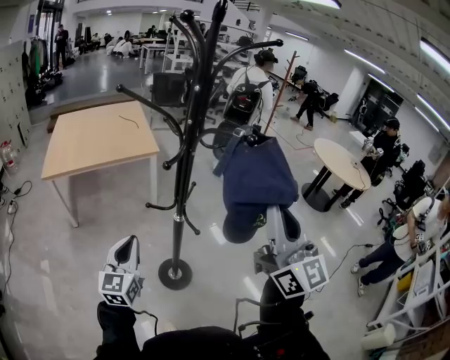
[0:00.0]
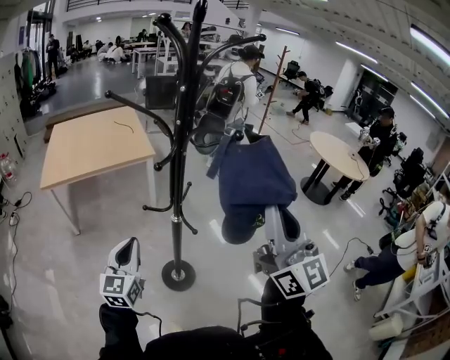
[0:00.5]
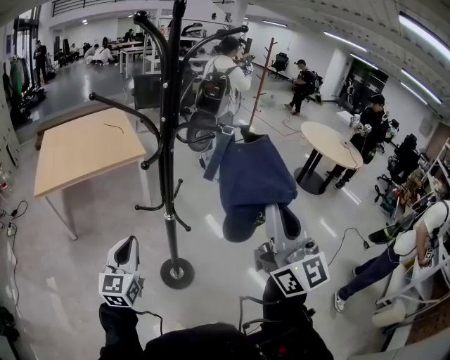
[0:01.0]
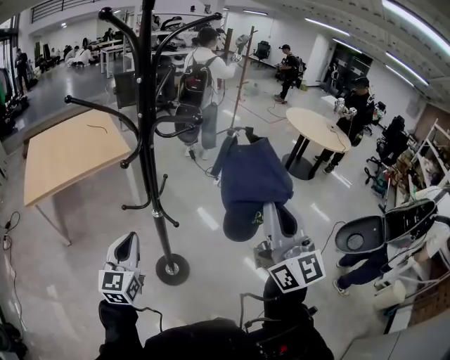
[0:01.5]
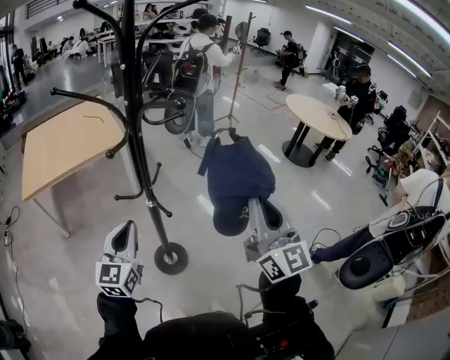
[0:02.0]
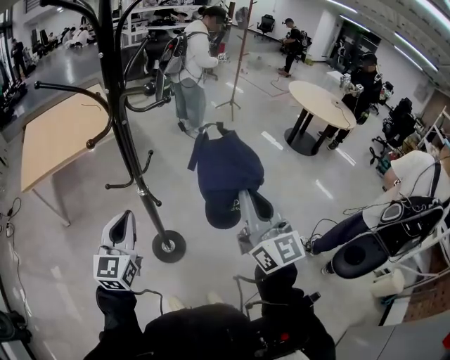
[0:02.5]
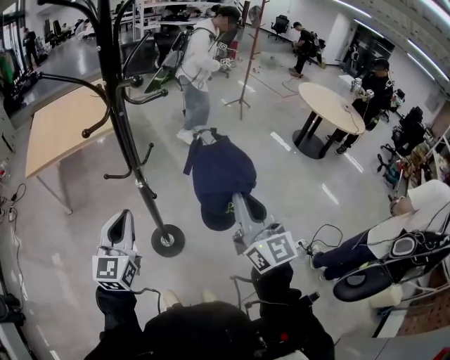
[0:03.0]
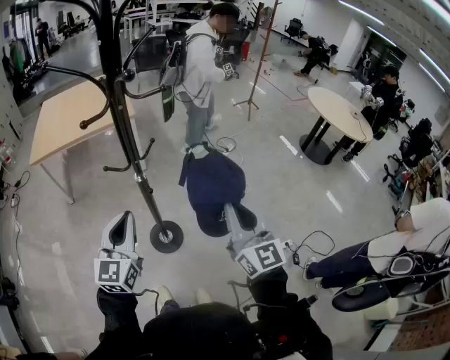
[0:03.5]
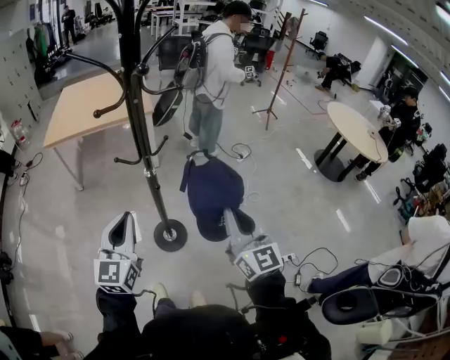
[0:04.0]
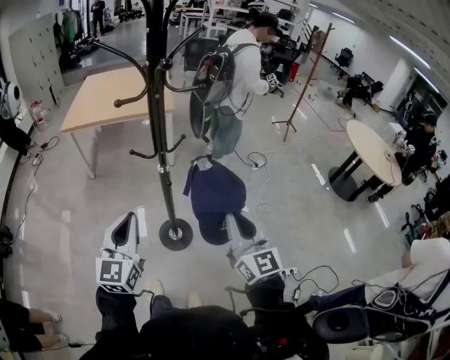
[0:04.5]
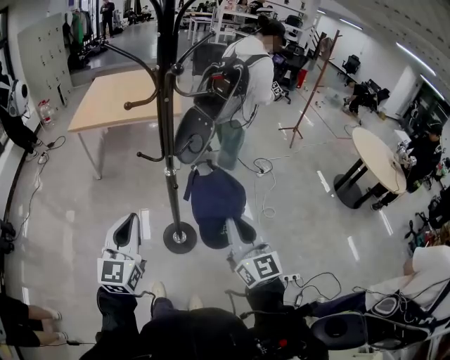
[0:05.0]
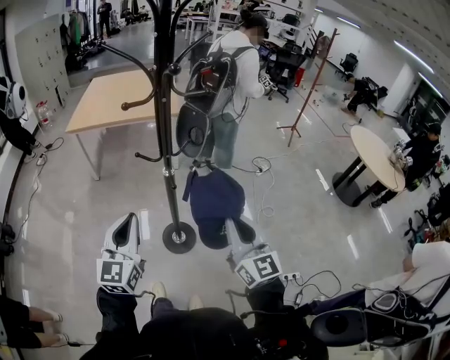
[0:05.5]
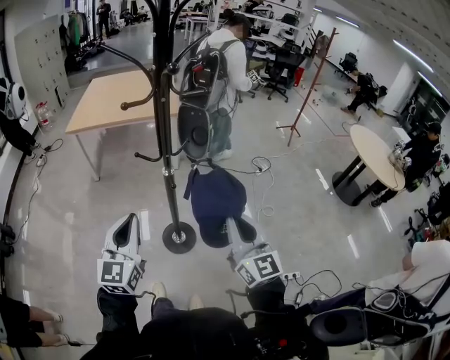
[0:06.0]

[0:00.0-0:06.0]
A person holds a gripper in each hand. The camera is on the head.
0:00.0 to 0:02.0: The right gripper goes some 10 cm downward and to the right, while the left gripper heads to the right, covering some 10 cm.
0:02.0 to 0:04.0: The right gripper travels downward by roughly 15 cm, and rotates some 20 degrees, while the left gripper moves backward and to the right, approximately 10 cm.
0:04.0 to 0:06.0: The grippers move only a little.

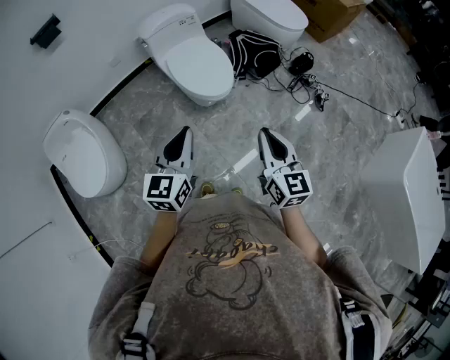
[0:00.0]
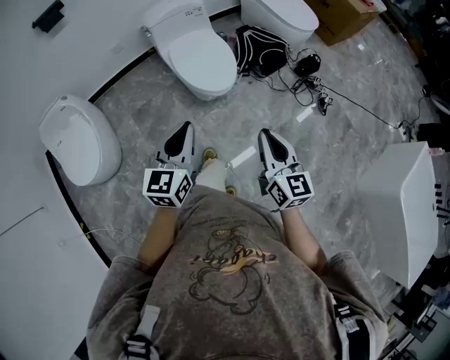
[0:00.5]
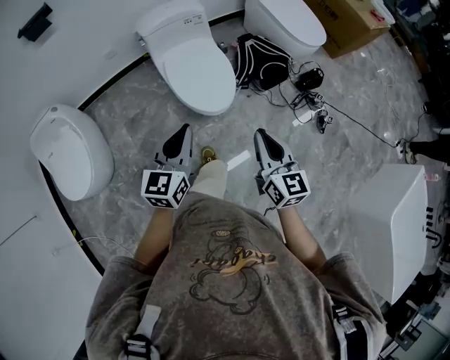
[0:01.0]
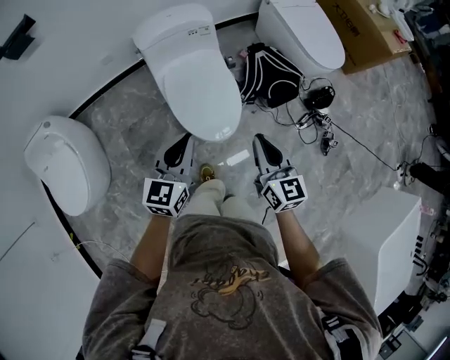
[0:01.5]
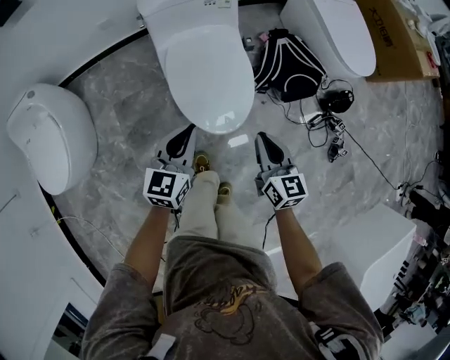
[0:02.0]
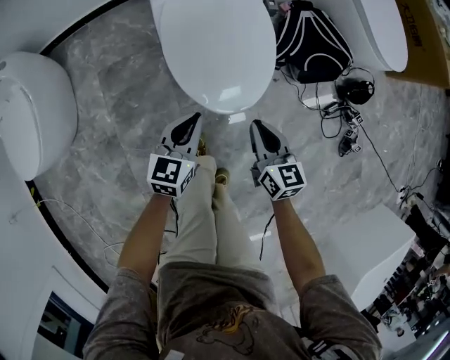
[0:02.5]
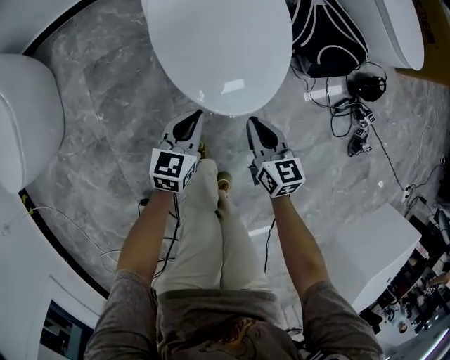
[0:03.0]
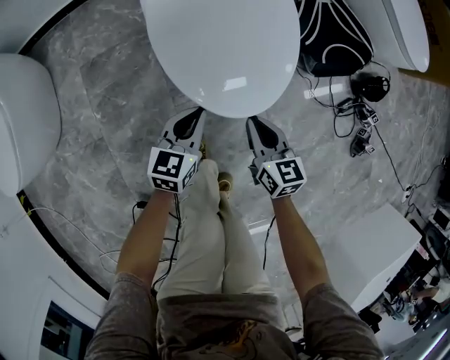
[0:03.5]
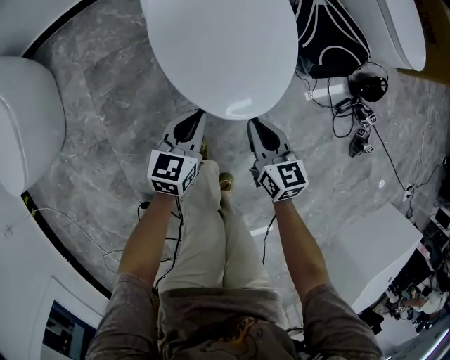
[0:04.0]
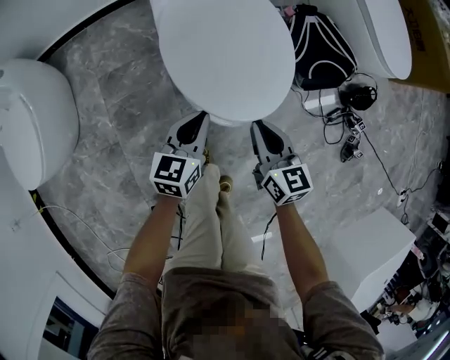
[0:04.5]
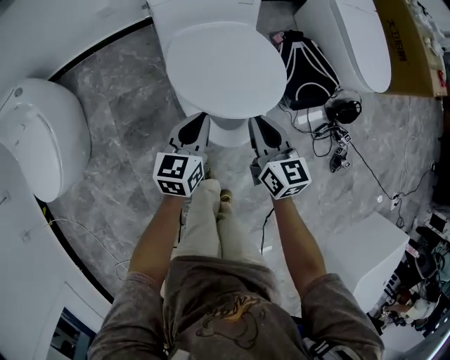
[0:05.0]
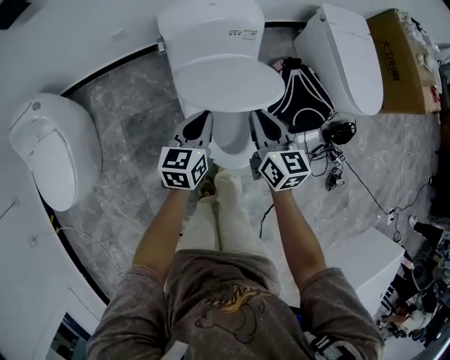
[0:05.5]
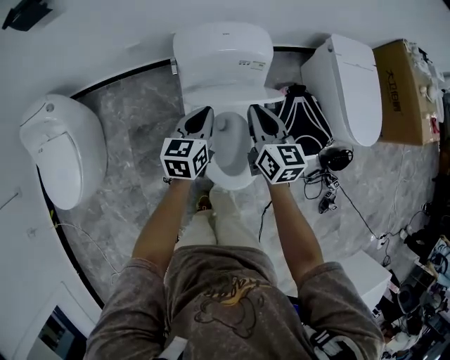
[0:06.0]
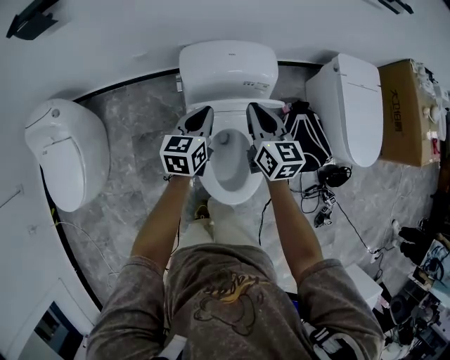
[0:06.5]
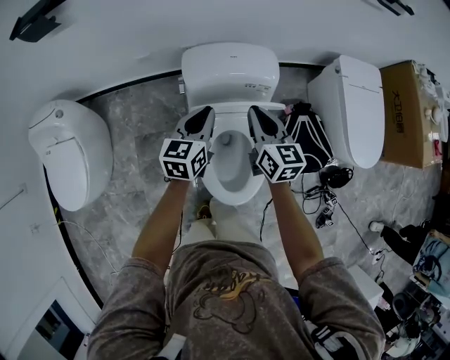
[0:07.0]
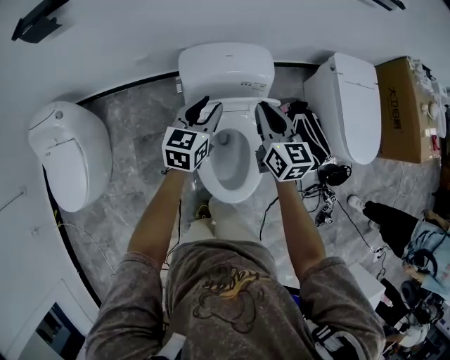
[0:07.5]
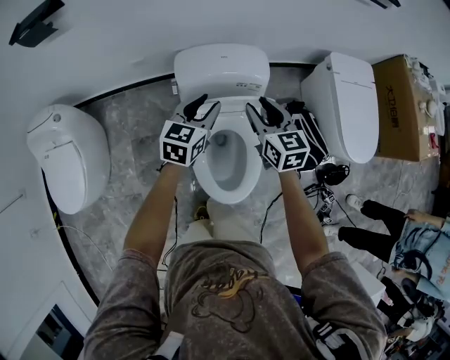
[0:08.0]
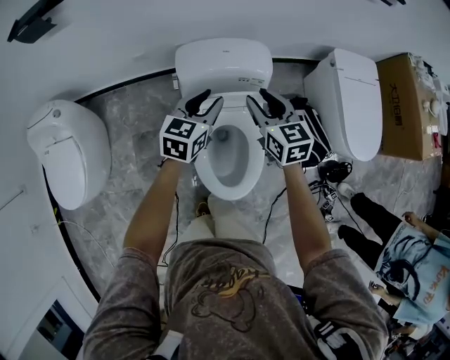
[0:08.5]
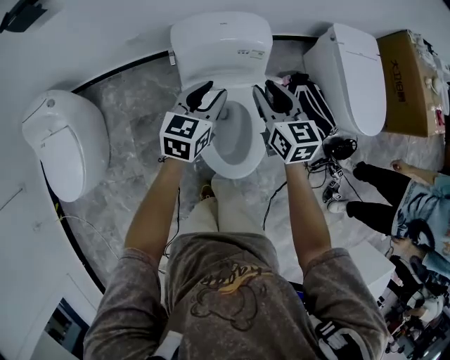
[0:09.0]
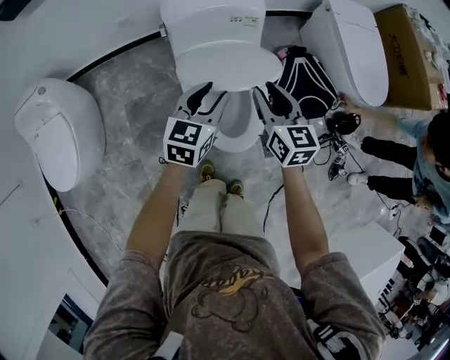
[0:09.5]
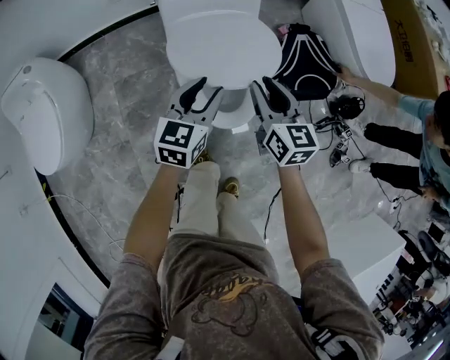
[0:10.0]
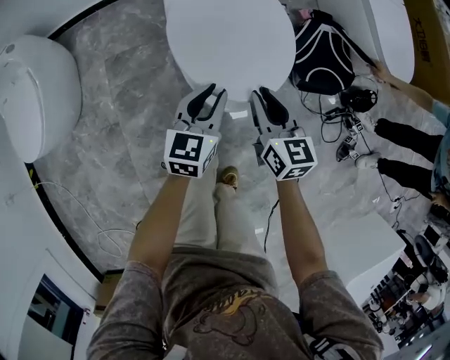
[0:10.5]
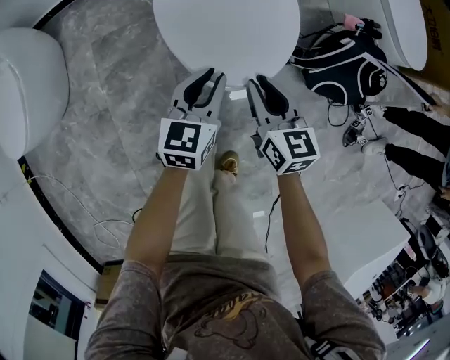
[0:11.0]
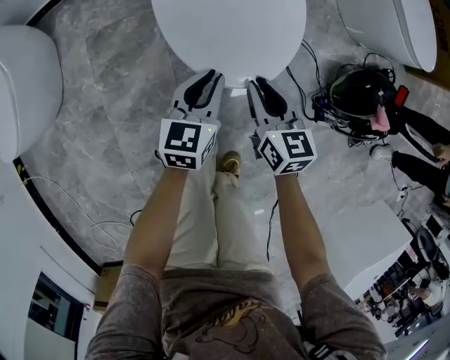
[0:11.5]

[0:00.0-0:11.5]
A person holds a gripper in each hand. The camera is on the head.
0:00.0 to 0:02.0: The two grippers go approximately 50 cm forward and downward. The right gripper changes its angle by approximately 20 degrees.
0:02.0 to 0:04.0: The grippers both shift downward by some 30 cm.
0:04.0 to 0:06.0: The two grippers go some 50 cm upward and forward.
0:06.0 to 0:07.5: The left gripper heads forward and upward, covering roughly 10 cm, and opens its fingers. The right gripper moves forward, roughly 5 cm.
0:07.5 to 0:09.5: The right gripper shifts about 20 cm backward and downward, and opens its fingers. Meanwhile the left gripper travels backward by some 15 cm.
0:09.5 to 0:11.5: The two grippers go roughly 35 cm downward and backward. The left gripper closes up.

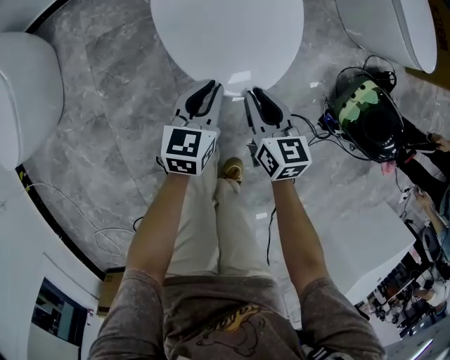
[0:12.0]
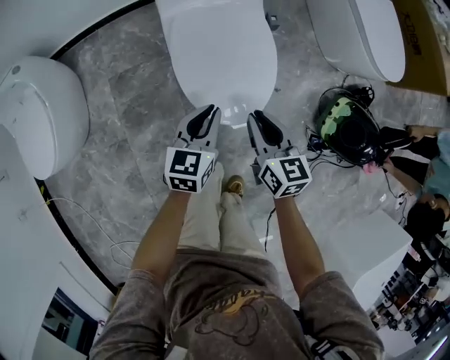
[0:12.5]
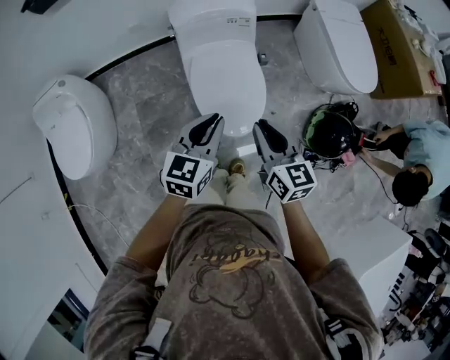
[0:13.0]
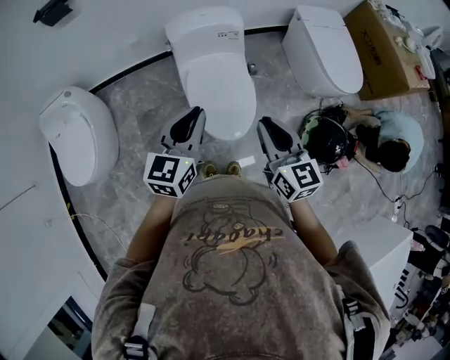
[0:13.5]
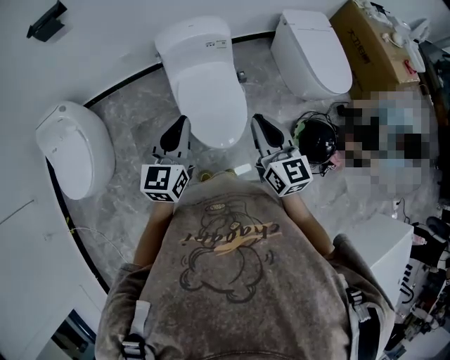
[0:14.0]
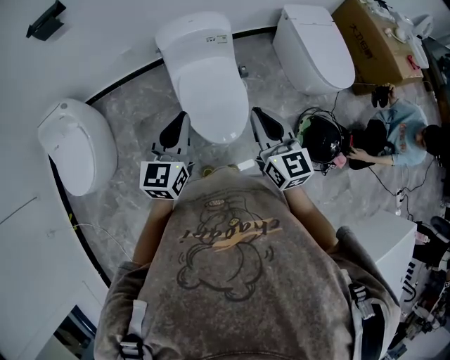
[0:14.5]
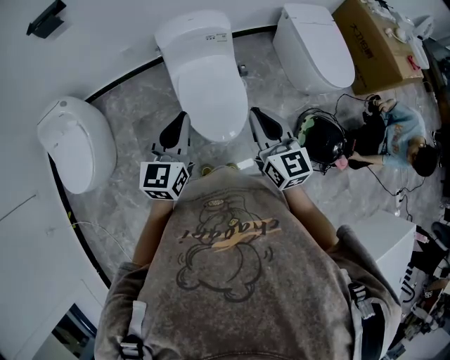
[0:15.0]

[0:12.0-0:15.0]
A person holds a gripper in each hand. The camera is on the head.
0:12.0 to 0:13.5: Both grippers move upward, about 50 cm. The left gripper rotates some 20 degrees. The right gripper rotates about 20 degrees.
0:13.5 to 0:15.0: There are only small adjustments of the grippers.

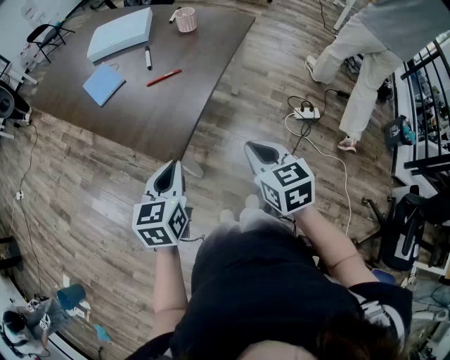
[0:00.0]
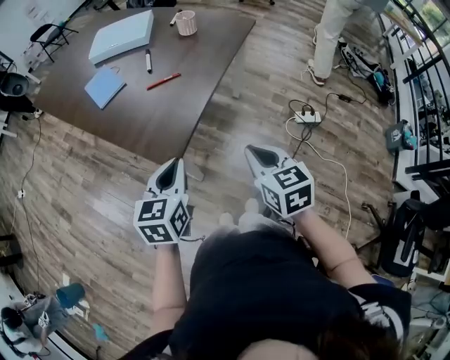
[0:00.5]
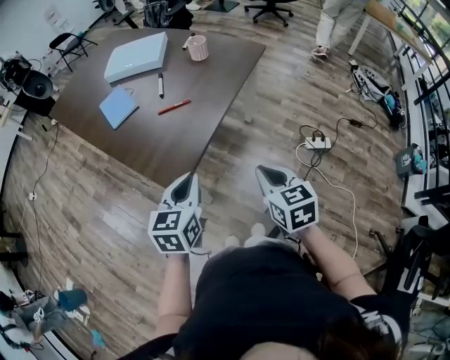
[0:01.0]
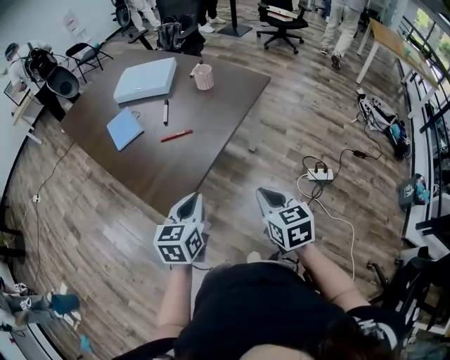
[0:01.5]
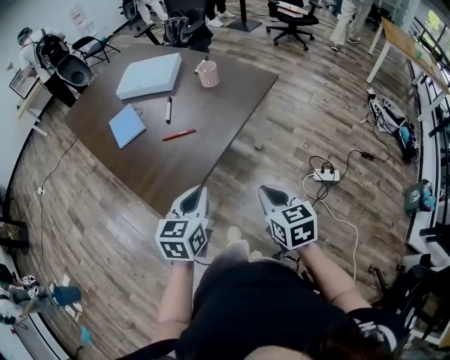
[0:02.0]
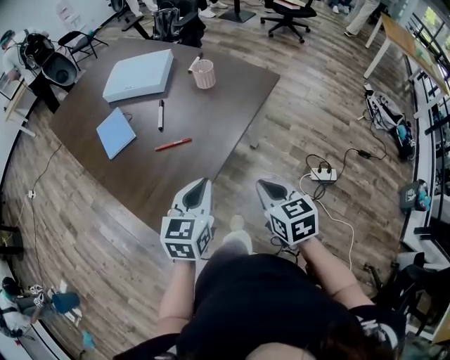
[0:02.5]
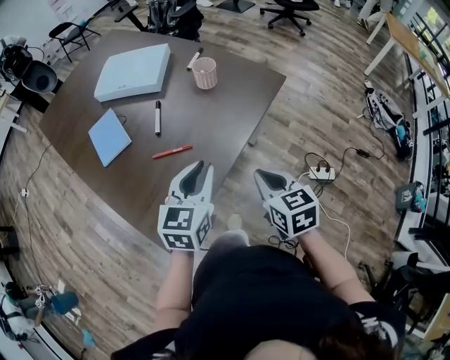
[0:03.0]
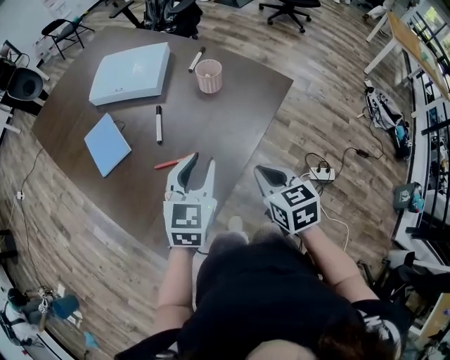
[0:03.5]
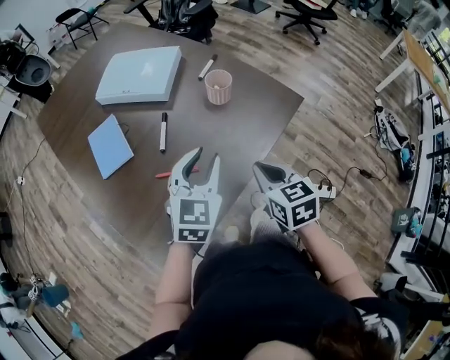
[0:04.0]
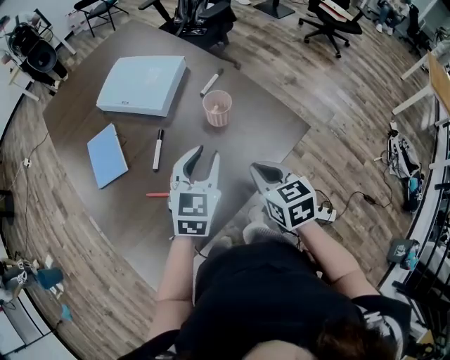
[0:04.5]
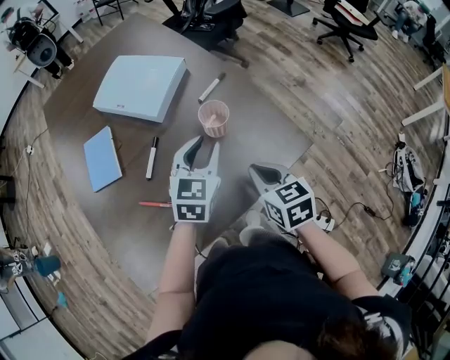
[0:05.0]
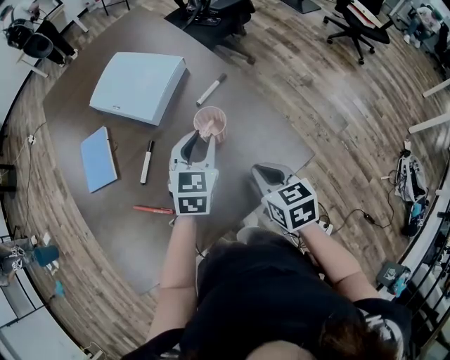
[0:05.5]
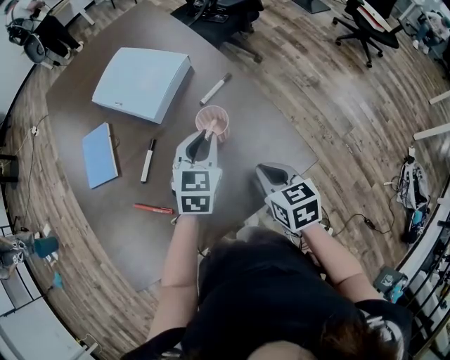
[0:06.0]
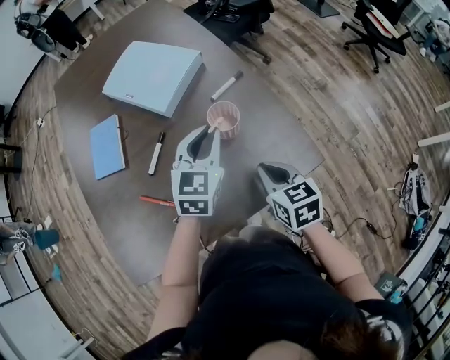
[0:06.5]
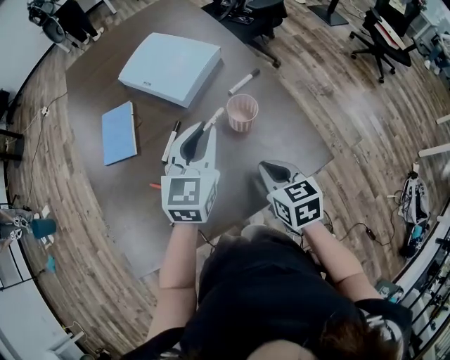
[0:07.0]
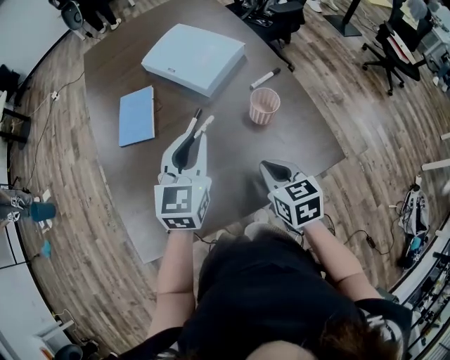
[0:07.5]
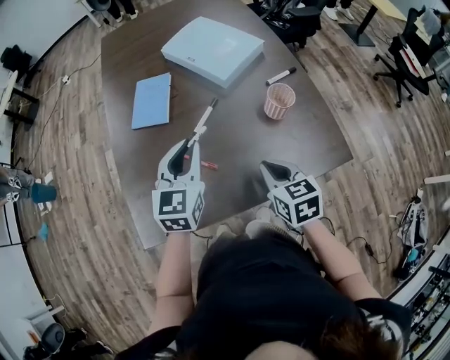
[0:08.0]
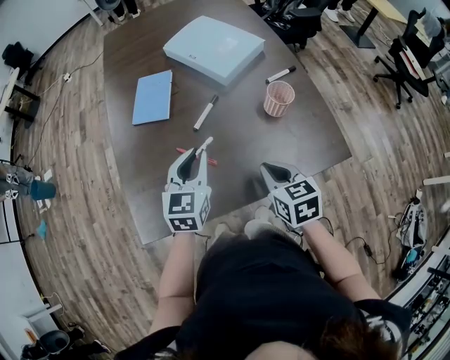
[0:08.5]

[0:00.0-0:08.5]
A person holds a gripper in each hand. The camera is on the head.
0:00.0 to 0:02.0: The two grippers go approximately 15 cm to the right and forward.
0:02.0 to 0:04.0: Both grippers travel together forward, approximately 30 cm. The left gripper opens its fingers.
0:04.0 to 0:06.5: Both grippers move forward and to the right, approximately 20 cm. The right gripper turns by roughly 20 degrees, while the left gripper swivels about 20 degrees.
0:06.5 to 0:08.5: The right gripper travels to the left and backward by about 15 cm; the left gripper moves to the left and backward, approximately 25 cm.
